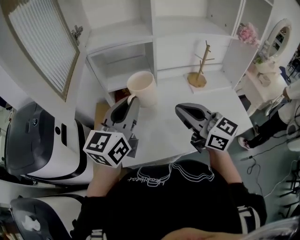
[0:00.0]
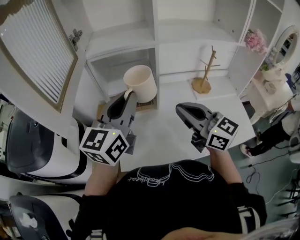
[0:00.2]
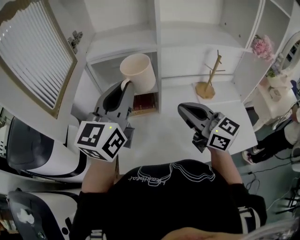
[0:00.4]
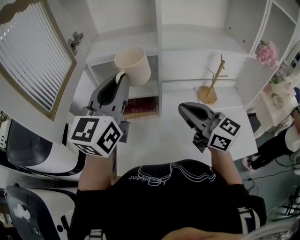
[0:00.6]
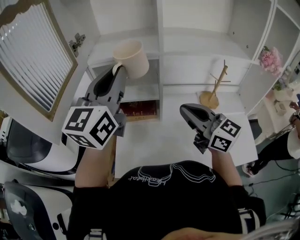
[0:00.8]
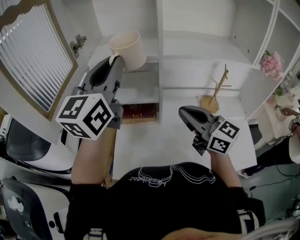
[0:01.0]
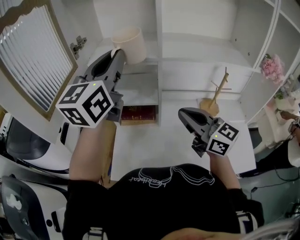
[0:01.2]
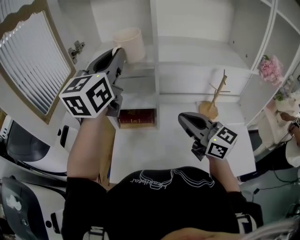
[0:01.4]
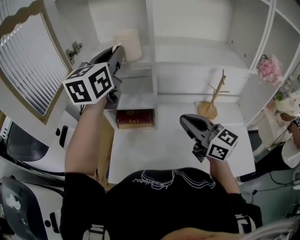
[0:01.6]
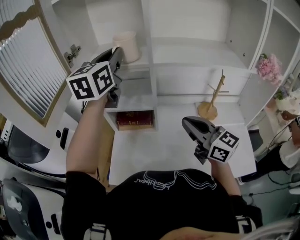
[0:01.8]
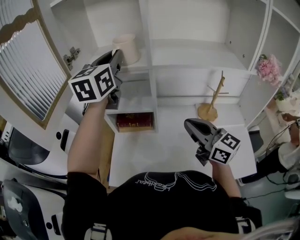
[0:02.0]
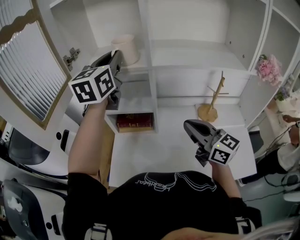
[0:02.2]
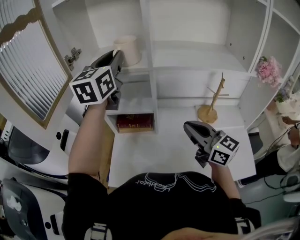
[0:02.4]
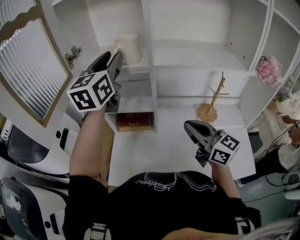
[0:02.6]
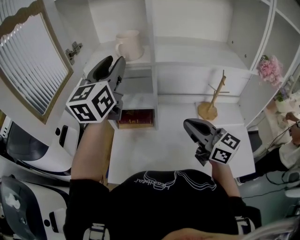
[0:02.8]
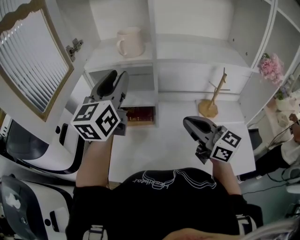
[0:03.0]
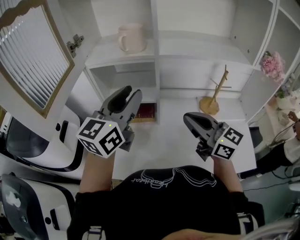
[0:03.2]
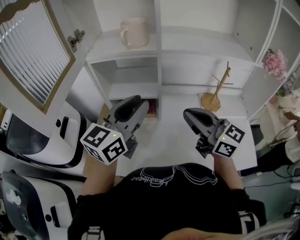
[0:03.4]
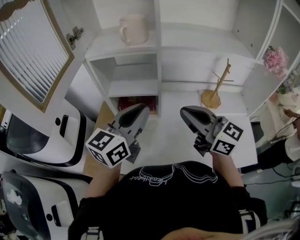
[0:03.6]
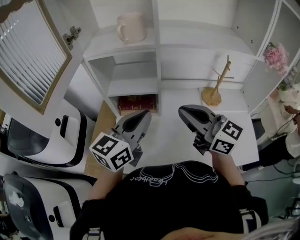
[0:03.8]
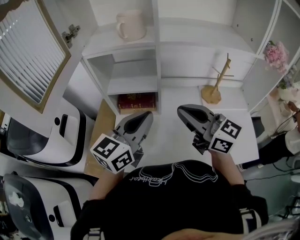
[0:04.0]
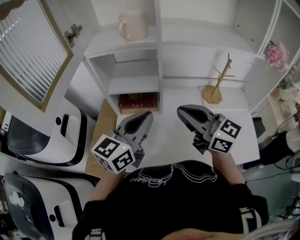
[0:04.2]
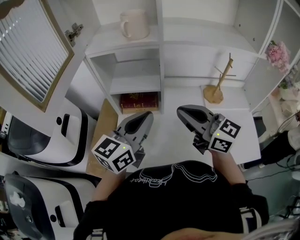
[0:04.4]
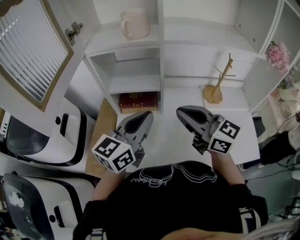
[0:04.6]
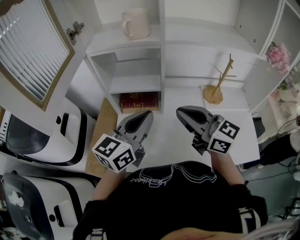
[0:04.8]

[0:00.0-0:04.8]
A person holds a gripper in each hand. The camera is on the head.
0:00.0 to 0:01.6: The left gripper heads forward and upward, covering about 25 cm, and turns by some 20 degrees; the right gripper goes about 15 cm to the right and forward.
0:01.6 to 0:03.2: The left gripper shifts about 15 cm backward and downward, and opens its fingers.
0:03.2 to 0:04.8: The right gripper ends up roughly 5 cm from where it was; the left gripper shifts roughly 10 cm downward and backward, and closes up.

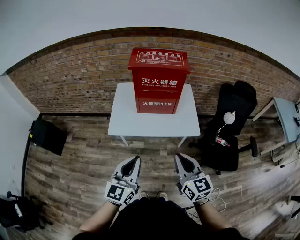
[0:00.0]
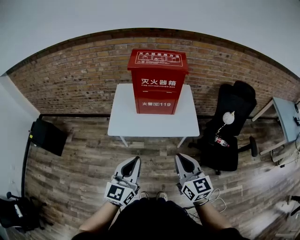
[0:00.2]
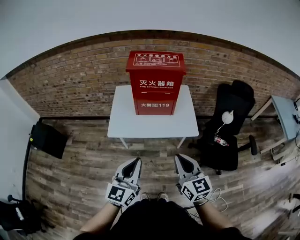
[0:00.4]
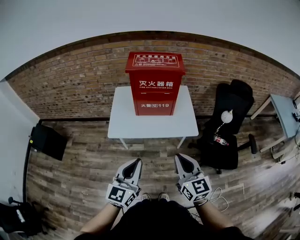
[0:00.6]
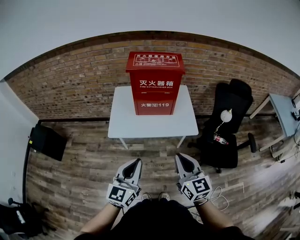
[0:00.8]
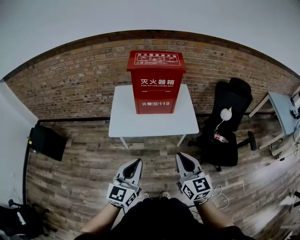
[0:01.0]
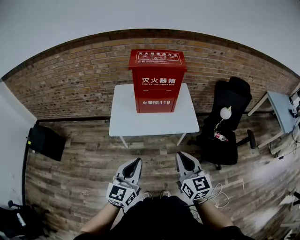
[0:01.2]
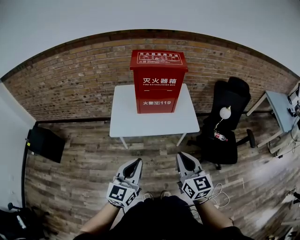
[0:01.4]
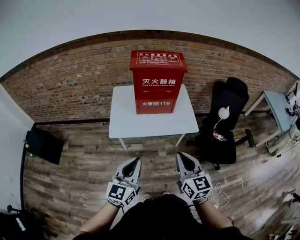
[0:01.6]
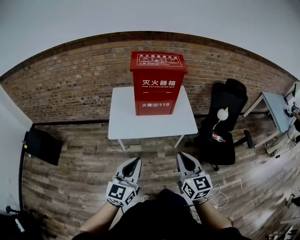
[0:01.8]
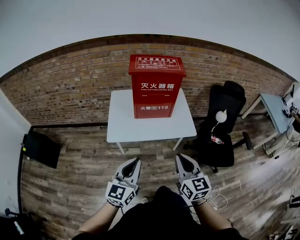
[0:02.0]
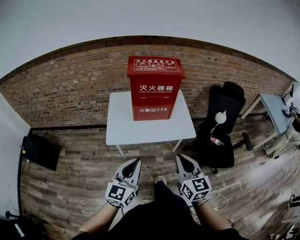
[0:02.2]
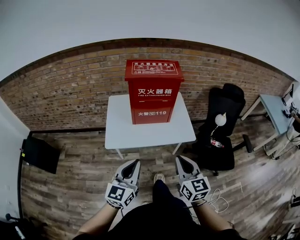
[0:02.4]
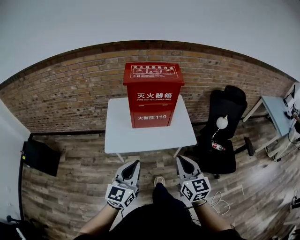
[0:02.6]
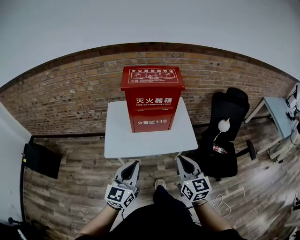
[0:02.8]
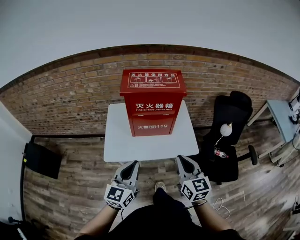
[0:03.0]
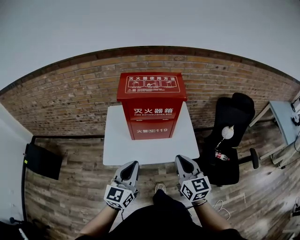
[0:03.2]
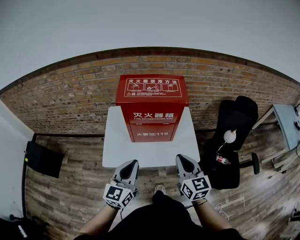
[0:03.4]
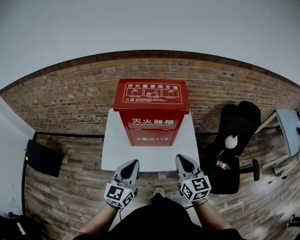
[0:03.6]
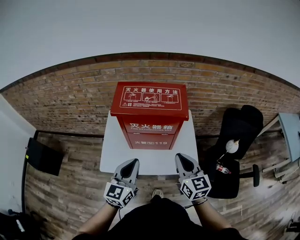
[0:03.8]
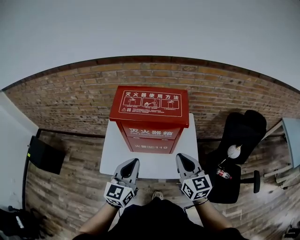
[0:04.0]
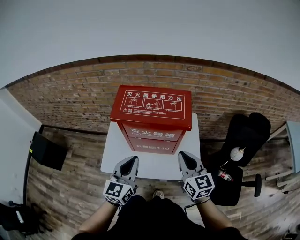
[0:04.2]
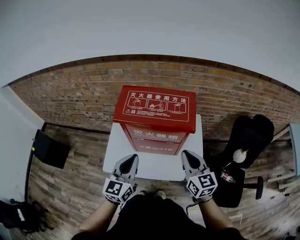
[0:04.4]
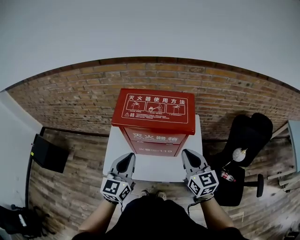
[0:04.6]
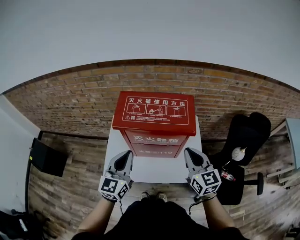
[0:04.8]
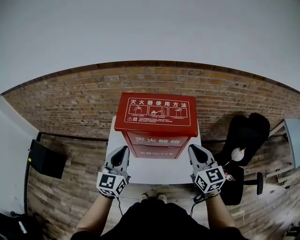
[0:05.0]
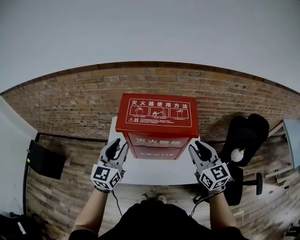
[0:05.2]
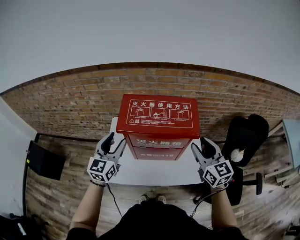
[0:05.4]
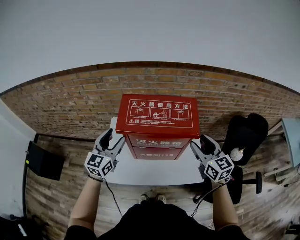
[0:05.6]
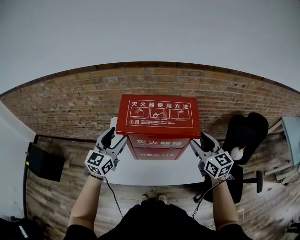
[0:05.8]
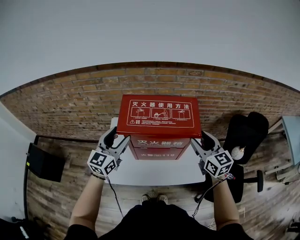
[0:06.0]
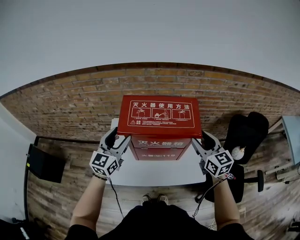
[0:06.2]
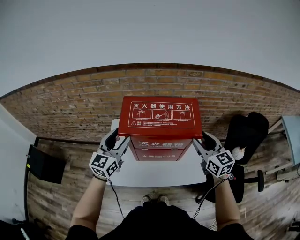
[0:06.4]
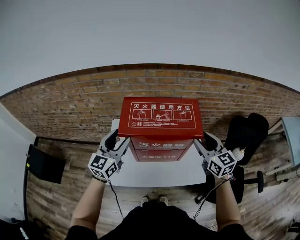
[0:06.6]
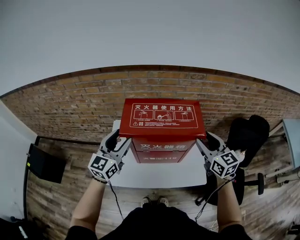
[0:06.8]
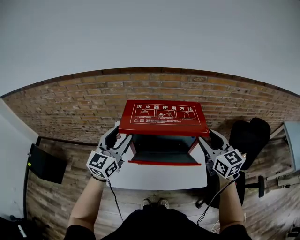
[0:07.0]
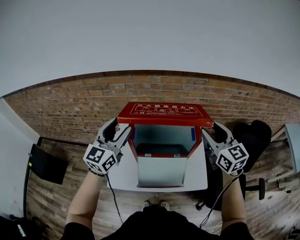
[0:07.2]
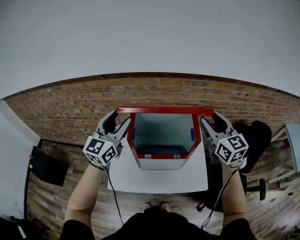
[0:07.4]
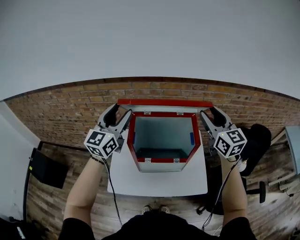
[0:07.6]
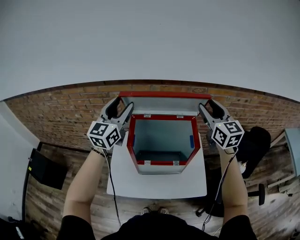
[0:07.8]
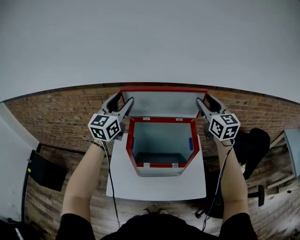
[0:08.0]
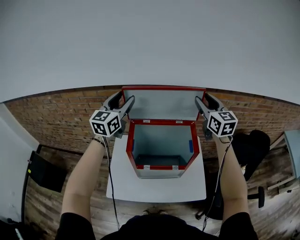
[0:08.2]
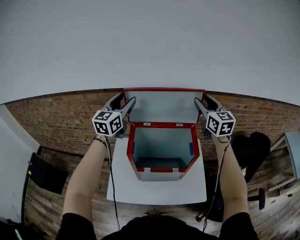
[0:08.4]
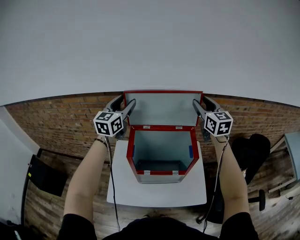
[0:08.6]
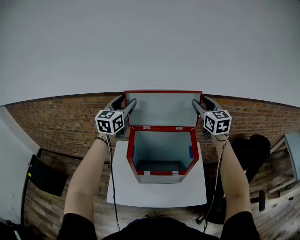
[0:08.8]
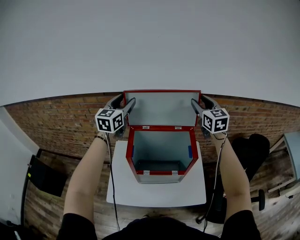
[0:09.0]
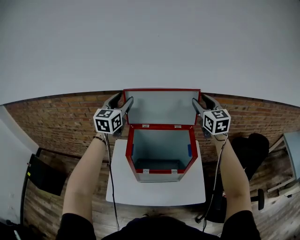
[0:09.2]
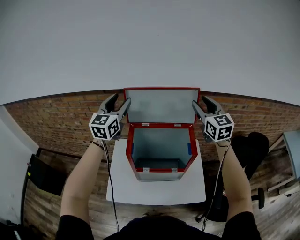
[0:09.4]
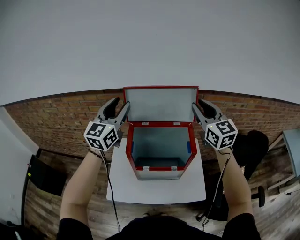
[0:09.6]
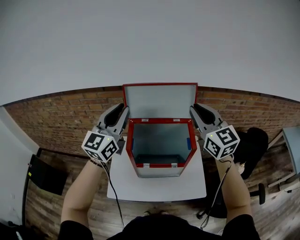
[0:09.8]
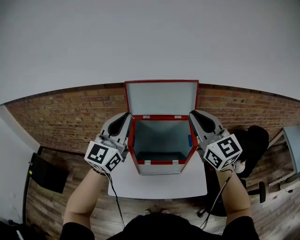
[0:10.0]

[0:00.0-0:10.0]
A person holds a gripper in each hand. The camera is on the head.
0:00.0 to 0:01.4: The left gripper shifts by approximately 5 cm. The right gripper changes place by roughly 5 cm.
0:01.4 to 0:02.8: Both grippers travel together forward, approximately 15 cm.
0:02.8 to 0:04.2: The two grippers go roughly 25 cm forward.
0:04.2 to 0:05.8: The right gripper travels forward by approximately 10 cm, and opens its fingers, while the left gripper travels forward and to the left by some 20 cm, and opens up.
0:05.8 to 0:07.2: The two grippers go about 10 cm upward.
0:07.2 to 0:08.6: The grippers both shift forward by approximately 20 cm.
0:08.6 to 0:10.0: The grippers both shift backward by some 20 cm. The right gripper closes its fingers. The left gripper closes its fingers.

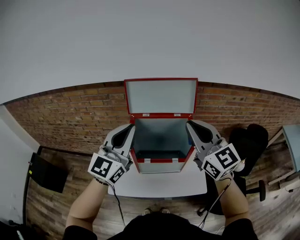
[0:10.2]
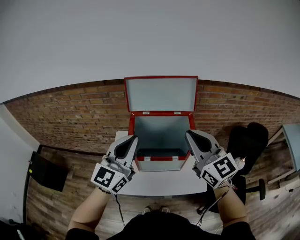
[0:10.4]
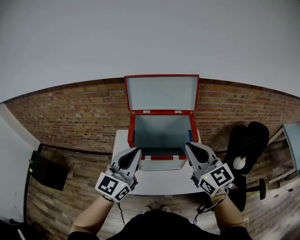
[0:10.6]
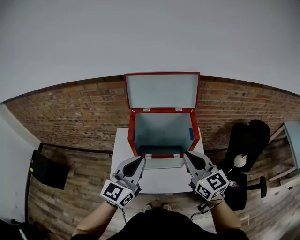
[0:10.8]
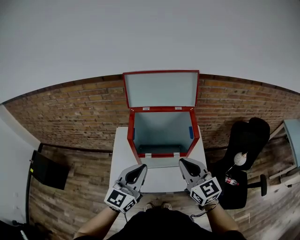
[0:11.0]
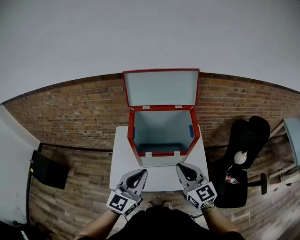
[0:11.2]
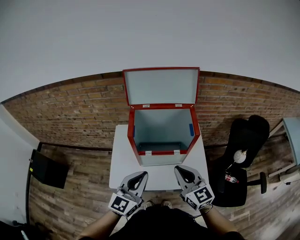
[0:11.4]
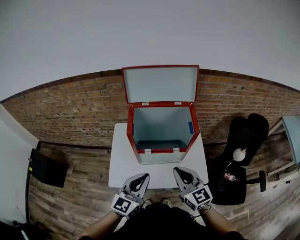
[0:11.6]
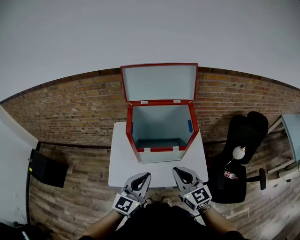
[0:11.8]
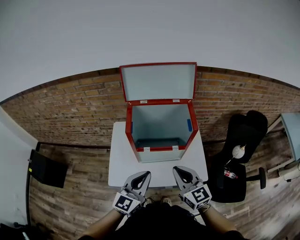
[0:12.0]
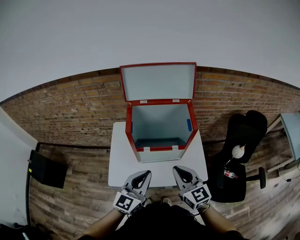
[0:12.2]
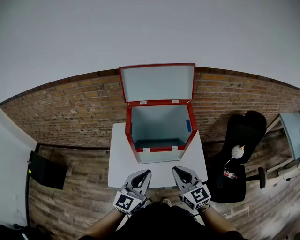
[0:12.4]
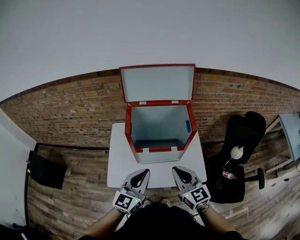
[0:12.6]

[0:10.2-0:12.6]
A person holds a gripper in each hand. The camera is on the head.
0:10.2 to 0:11.4: Both grippers travel together downward and backward, about 25 cm.
0:11.4 to 0:12.6: The grippers move only a little.

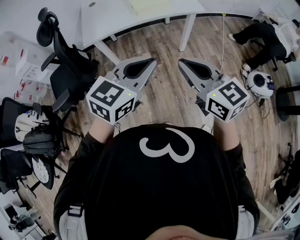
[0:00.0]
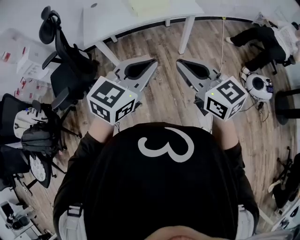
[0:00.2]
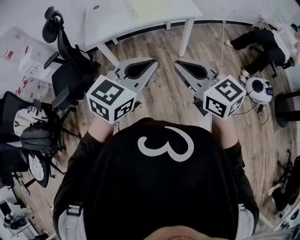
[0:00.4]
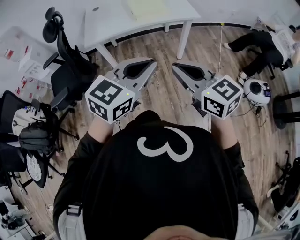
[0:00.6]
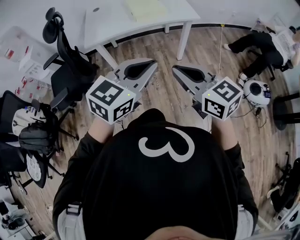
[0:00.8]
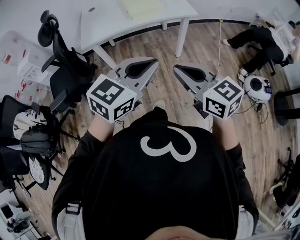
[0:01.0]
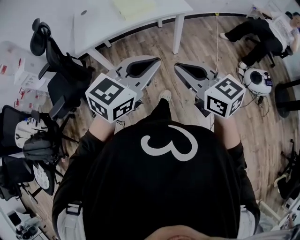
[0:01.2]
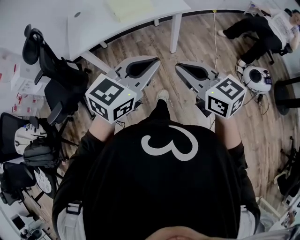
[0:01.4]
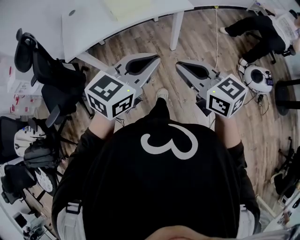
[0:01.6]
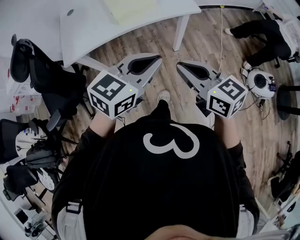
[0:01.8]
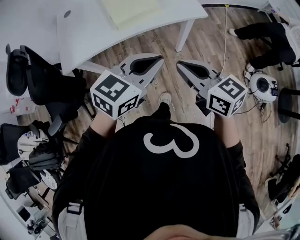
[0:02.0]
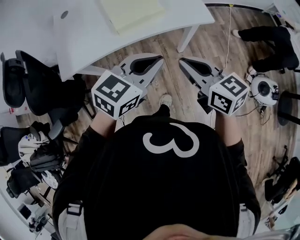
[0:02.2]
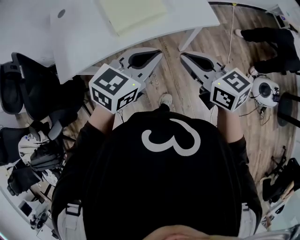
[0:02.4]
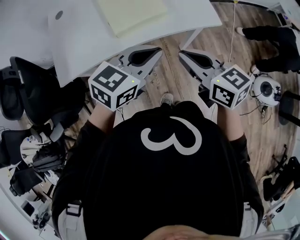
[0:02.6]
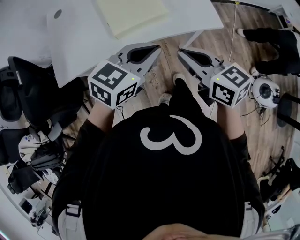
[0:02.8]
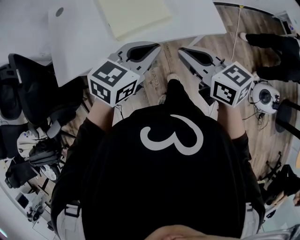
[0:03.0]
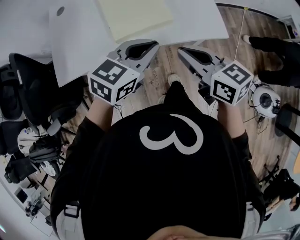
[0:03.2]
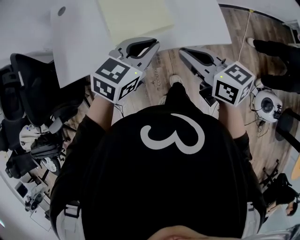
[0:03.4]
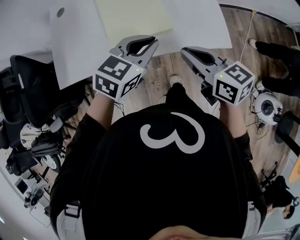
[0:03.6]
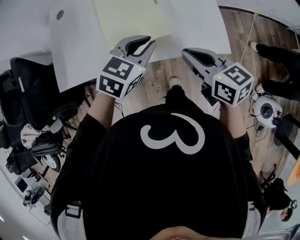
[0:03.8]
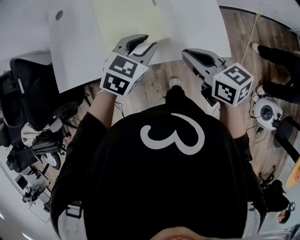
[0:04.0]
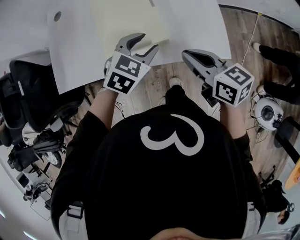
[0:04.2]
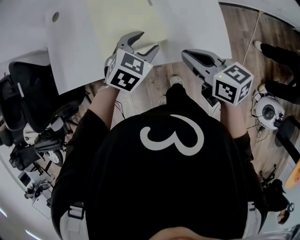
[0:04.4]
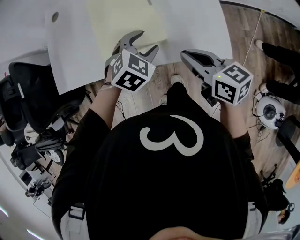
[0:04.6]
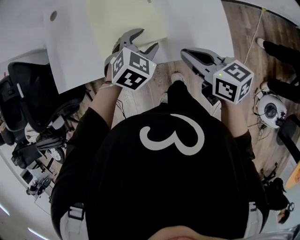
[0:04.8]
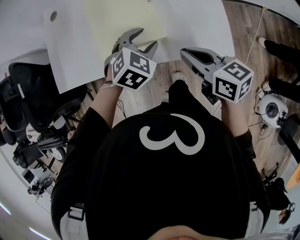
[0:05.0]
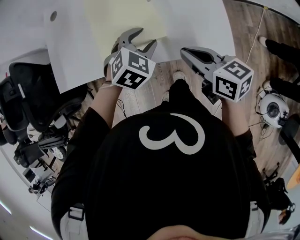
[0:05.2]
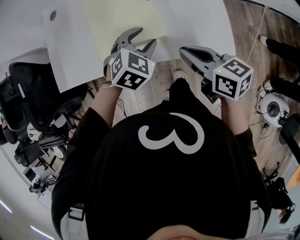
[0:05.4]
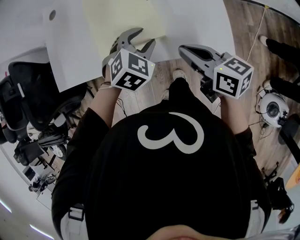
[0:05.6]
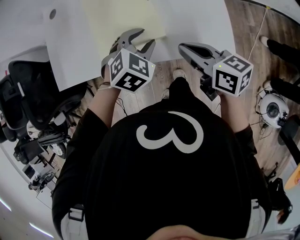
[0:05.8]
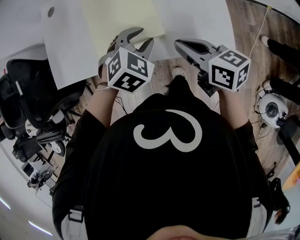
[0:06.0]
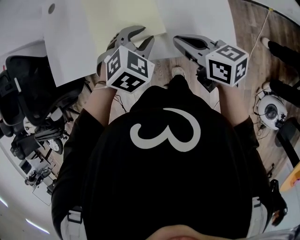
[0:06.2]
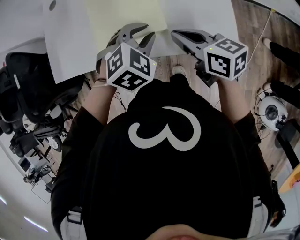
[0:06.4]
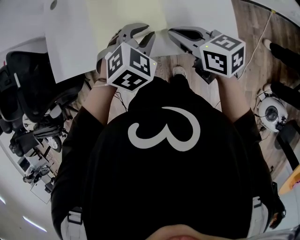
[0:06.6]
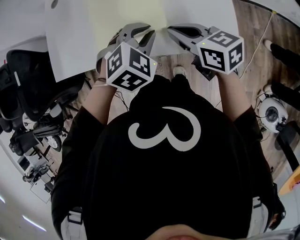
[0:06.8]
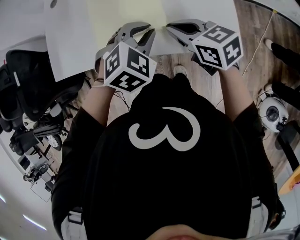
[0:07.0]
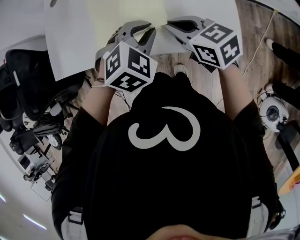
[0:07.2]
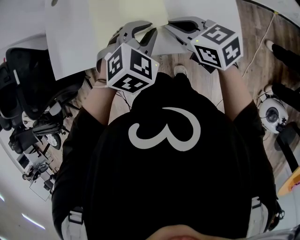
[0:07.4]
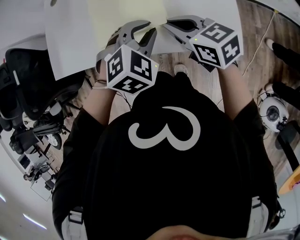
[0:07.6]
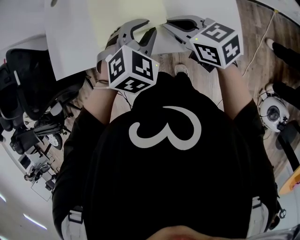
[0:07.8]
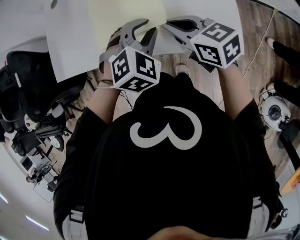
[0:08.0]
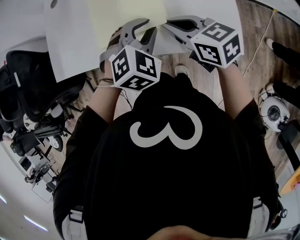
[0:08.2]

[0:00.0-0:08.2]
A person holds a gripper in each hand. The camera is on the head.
0:00.0 to 0:01.6: The left gripper is displaced forward and to the right by roughly 15 cm. Meanwhile the right gripper shifts approximately 15 cm forward, to the right and downward.
0:01.6 to 0:03.2: The grippers both shift forward by approximately 40 cm.
0:03.2 to 0:05.0: The right gripper goes about 15 cm forward, downward and to the right. Meanwhile the left gripper shifts some 20 cm forward and downward, turns by approximately 40 degrees, and opens.
0:05.0 to 0:06.6: The right gripper moves roughly 5 cm. Meanwhile the left gripper closes.
0:06.6 to 0:08.2: There are only small adjustments of the grippers.
